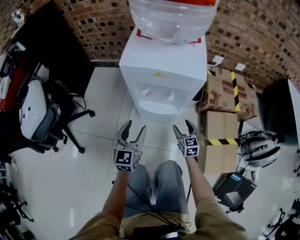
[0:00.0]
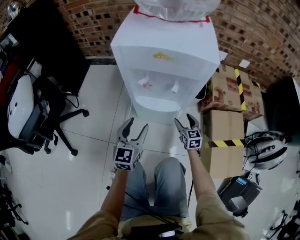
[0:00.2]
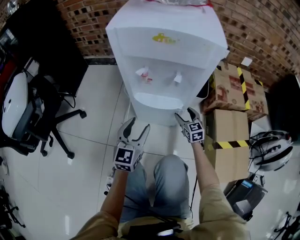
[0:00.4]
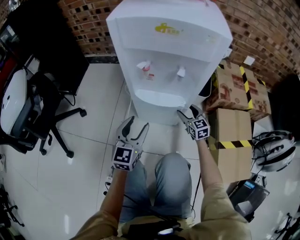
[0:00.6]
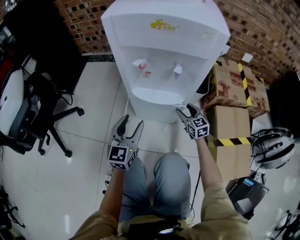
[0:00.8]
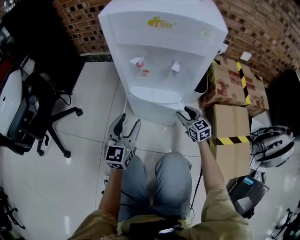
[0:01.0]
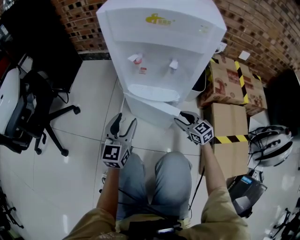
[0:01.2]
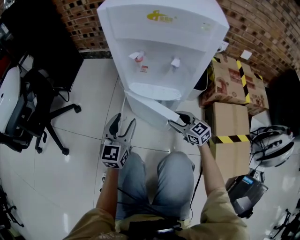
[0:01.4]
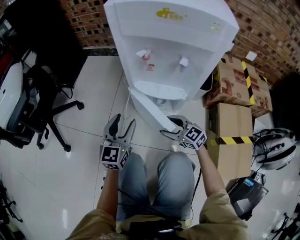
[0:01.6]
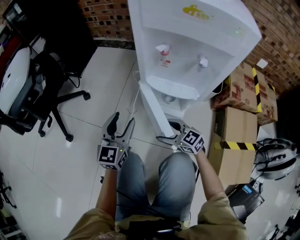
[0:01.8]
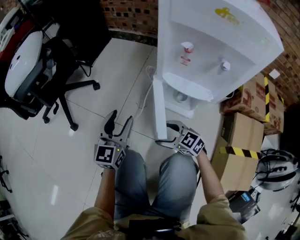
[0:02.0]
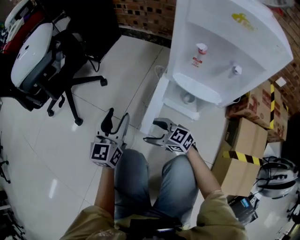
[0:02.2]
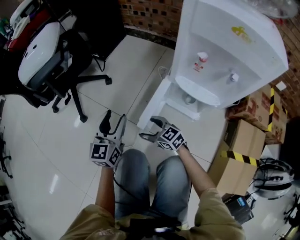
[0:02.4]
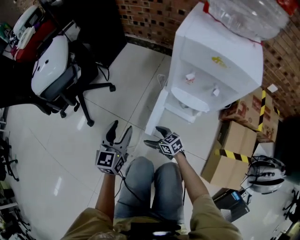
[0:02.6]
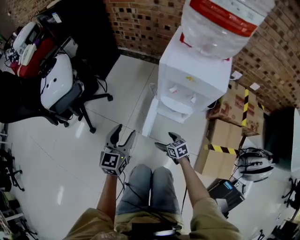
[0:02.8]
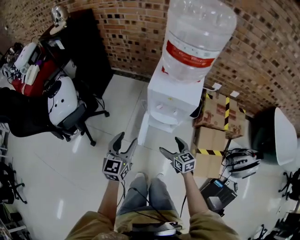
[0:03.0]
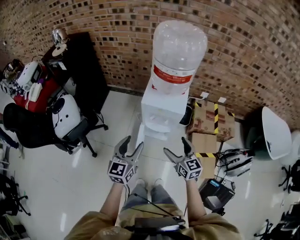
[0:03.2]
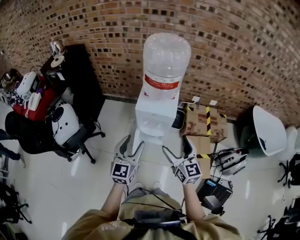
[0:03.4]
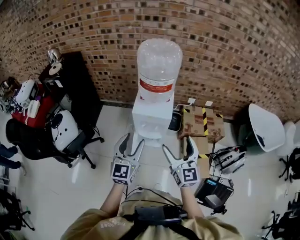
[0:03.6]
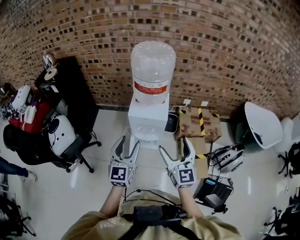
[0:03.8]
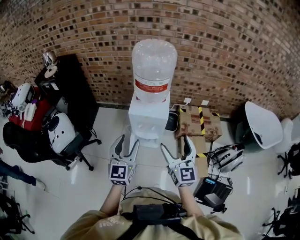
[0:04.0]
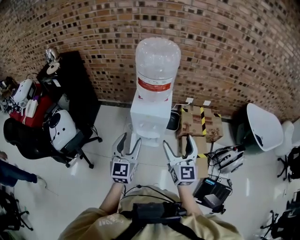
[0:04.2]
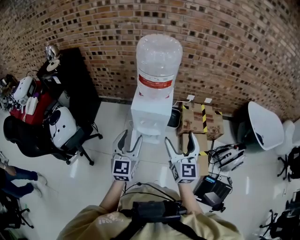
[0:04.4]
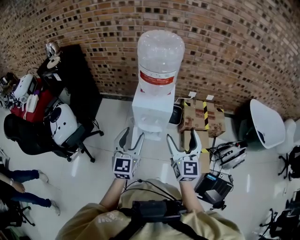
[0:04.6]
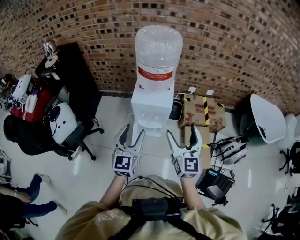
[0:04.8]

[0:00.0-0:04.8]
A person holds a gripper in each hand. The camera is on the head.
0:00.0 to 0:01.6: Both grippers travel together downward, roughly 15 cm. The right gripper swivels approximately 50 degrees.
0:01.6 to 0:03.2: The grippers both shift upward by approximately 60 cm. The right gripper swivels some 40 degrees, and opens up.
0:03.2 to 0:04.8: The right gripper moves upward, about 20 cm, and changes its angle by approximately 30 degrees. Meanwhile the left gripper is displaced upward and to the right by approximately 10 cm.

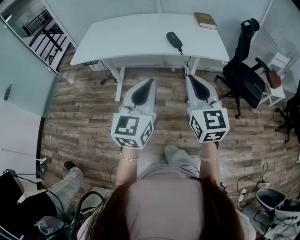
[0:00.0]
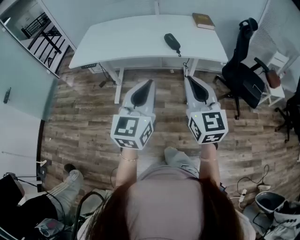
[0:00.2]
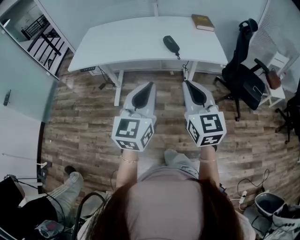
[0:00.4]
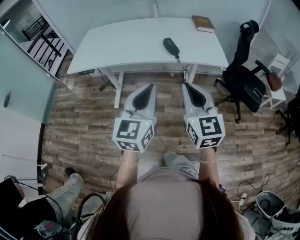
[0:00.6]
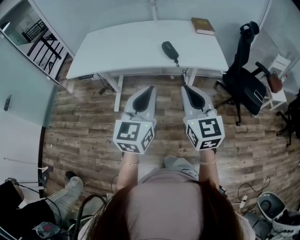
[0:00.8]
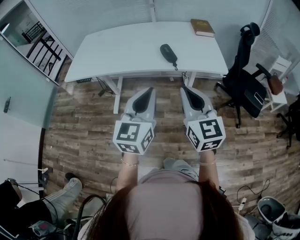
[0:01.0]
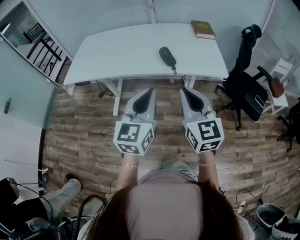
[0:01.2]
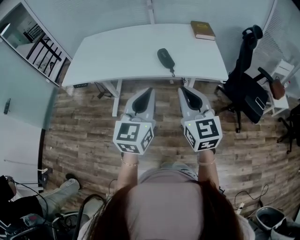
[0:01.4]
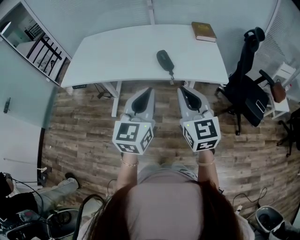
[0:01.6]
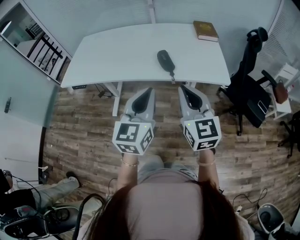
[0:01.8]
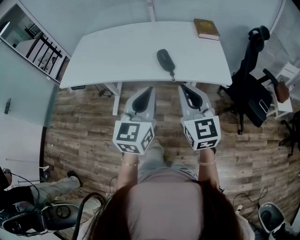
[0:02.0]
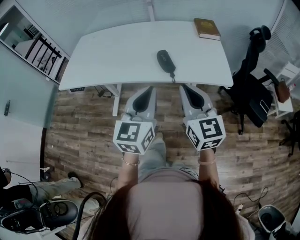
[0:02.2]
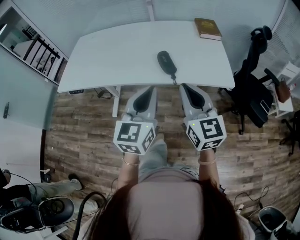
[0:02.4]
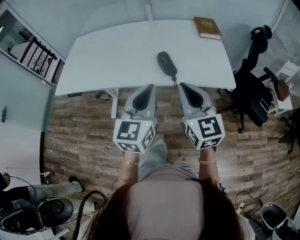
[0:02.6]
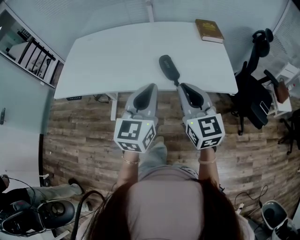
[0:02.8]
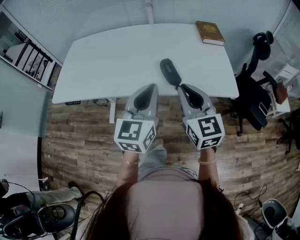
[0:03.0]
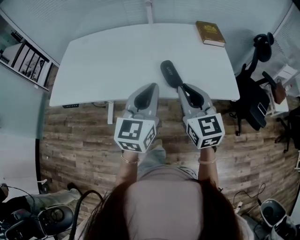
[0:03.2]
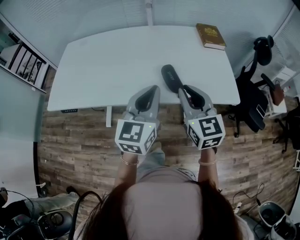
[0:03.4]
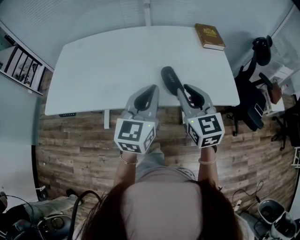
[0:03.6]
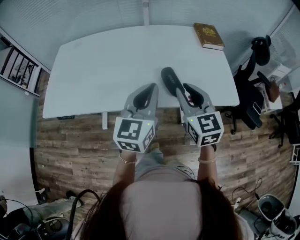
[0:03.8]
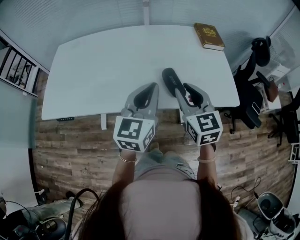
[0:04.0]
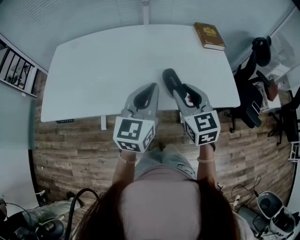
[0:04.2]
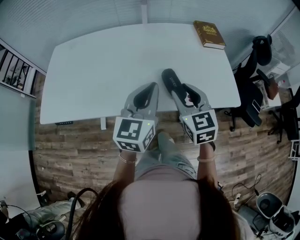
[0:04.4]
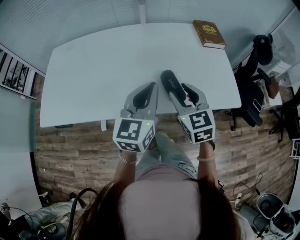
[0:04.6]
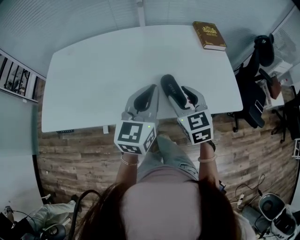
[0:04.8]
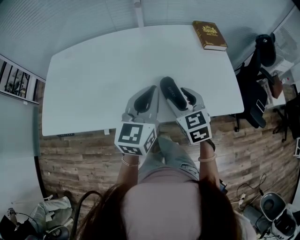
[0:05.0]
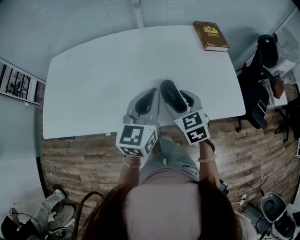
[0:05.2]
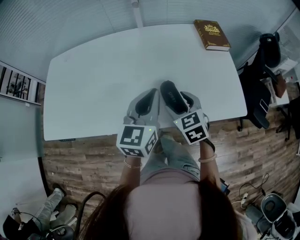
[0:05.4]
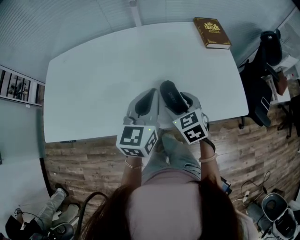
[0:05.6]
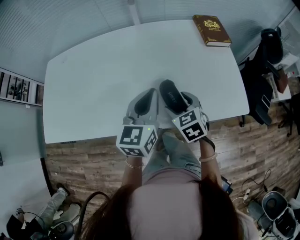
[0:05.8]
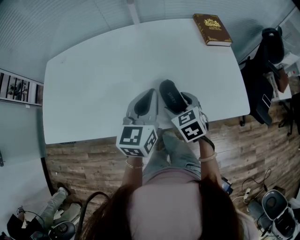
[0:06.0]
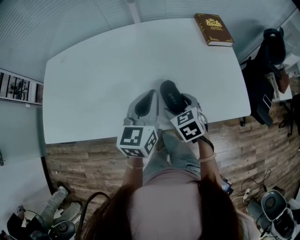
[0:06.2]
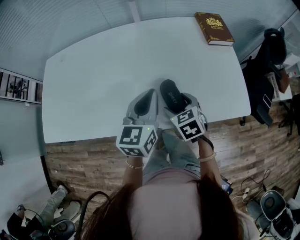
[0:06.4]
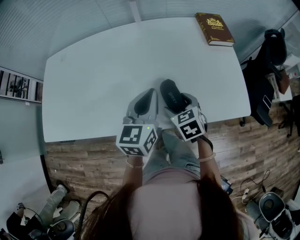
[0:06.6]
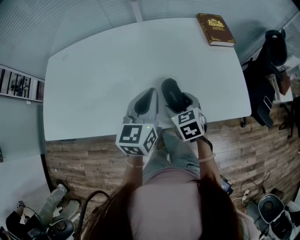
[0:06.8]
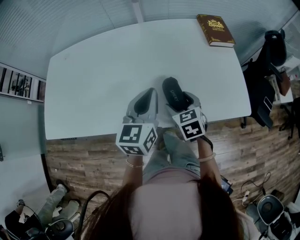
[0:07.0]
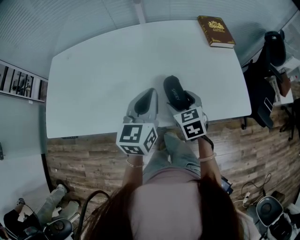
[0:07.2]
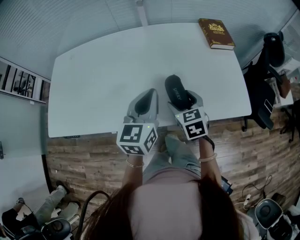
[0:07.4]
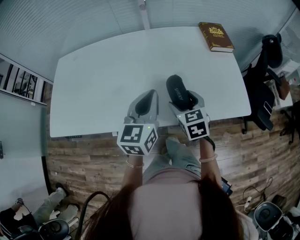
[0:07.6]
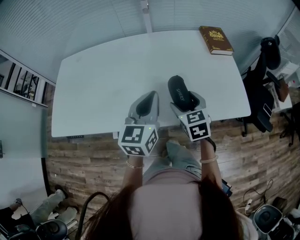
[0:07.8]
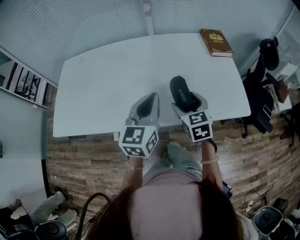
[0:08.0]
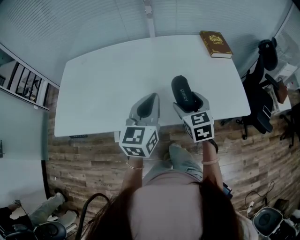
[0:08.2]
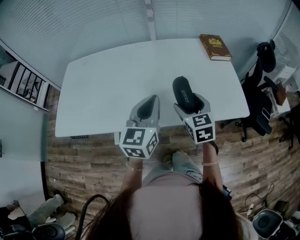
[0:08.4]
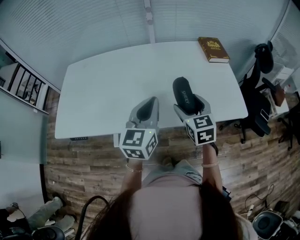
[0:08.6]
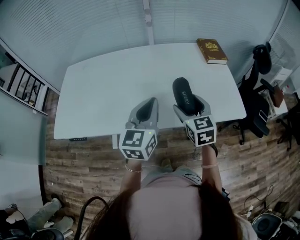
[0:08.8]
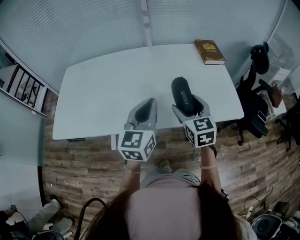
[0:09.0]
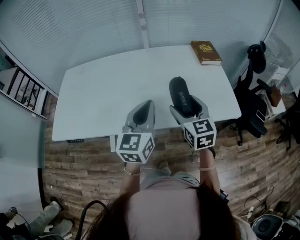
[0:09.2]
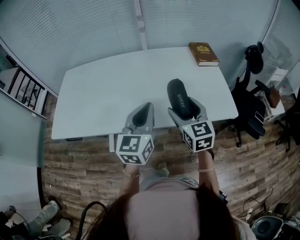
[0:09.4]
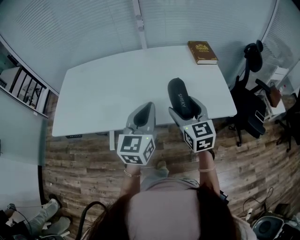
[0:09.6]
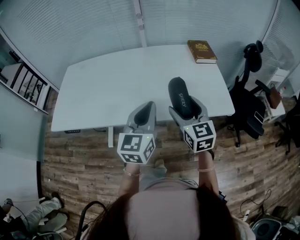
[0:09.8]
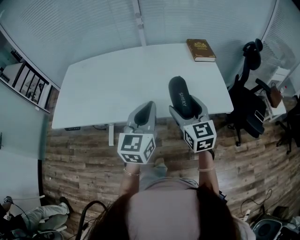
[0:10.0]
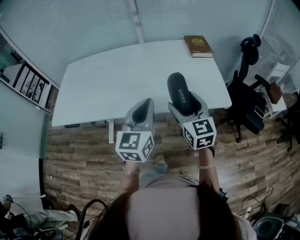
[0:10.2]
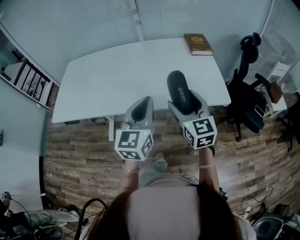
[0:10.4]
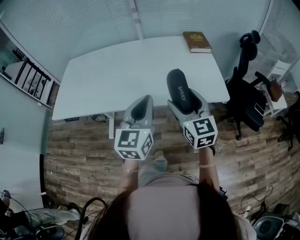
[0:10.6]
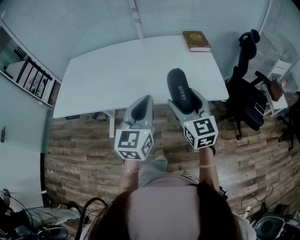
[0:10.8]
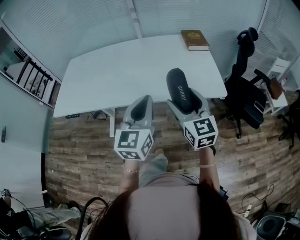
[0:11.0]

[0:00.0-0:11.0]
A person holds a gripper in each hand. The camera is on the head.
0:00.0 to 0:01.6: The left gripper shifts roughly 20 cm forward and to the right. The right gripper shifts approximately 15 cm forward.
0:01.6 to 0:03.2: The two grippers go some 15 cm forward.
0:03.2 to 0:04.8: The right gripper shifts some 15 cm forward and downward, and opens up. The left gripper moves forward, about 15 cm.
0:04.8 to 0:06.2: The left gripper shifts approximately 10 cm forward and downward. The right gripper is displaced downward by approximately 10 cm, swivels some 20 degrees, and opens its fingers.
0:06.2 to 0:07.8: The right gripper is displaced upward by some 5 cm. Meanwhile the left gripper moves approximately 5 cm.
0:07.8 to 0:09.4: The left gripper moves backward, roughly 10 cm, while the right gripper heads upward and backward, covering about 10 cm.
0:09.4 to 0:11.0: Both grippers travel together backward and to the right, approximately 15 cm.

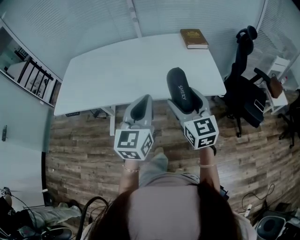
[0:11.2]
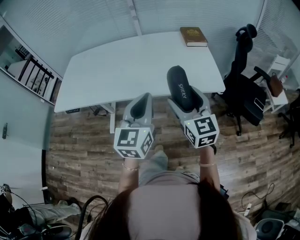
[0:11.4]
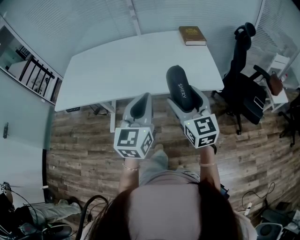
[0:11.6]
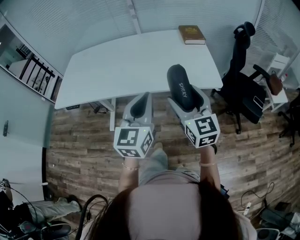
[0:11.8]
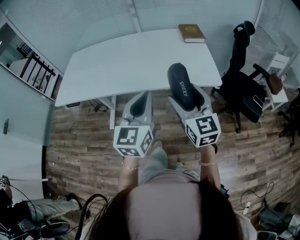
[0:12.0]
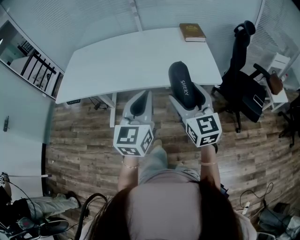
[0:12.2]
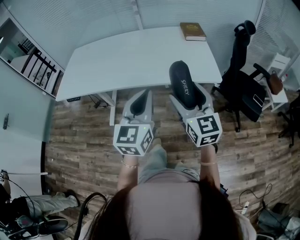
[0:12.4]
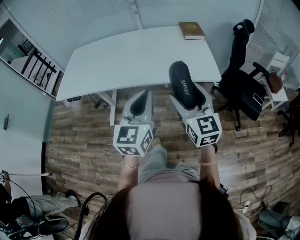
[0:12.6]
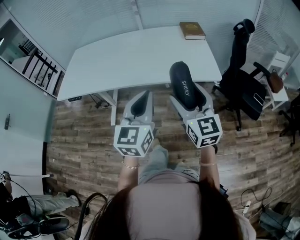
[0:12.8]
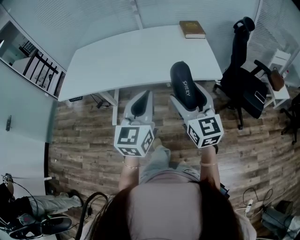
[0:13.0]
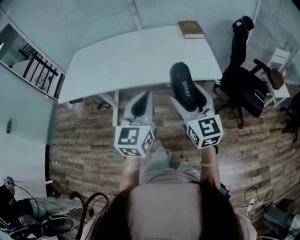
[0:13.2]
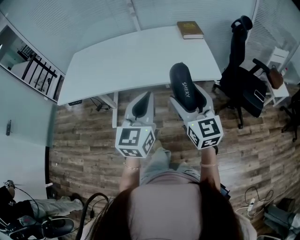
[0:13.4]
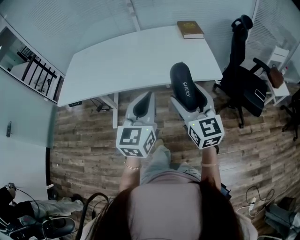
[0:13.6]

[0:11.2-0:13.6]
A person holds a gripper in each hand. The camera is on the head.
0:11.2 to 0:12.4: The two grippers go about 10 cm backward.
0:12.4 to 0:13.6: The grippers stay close to where they were, moving slightly.

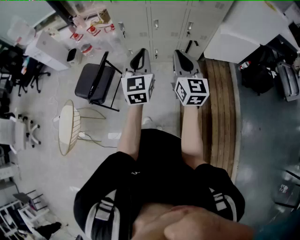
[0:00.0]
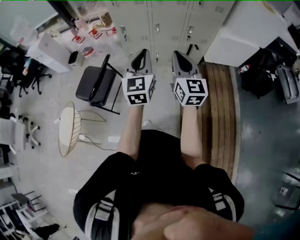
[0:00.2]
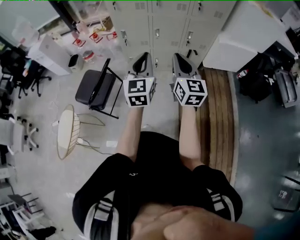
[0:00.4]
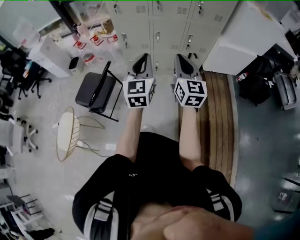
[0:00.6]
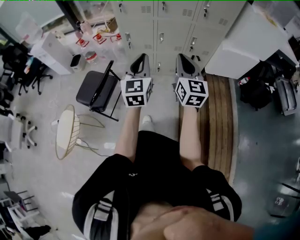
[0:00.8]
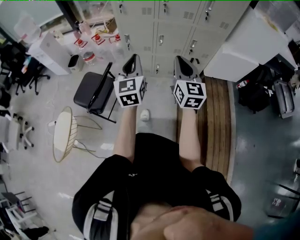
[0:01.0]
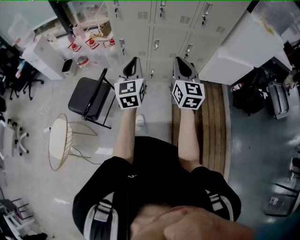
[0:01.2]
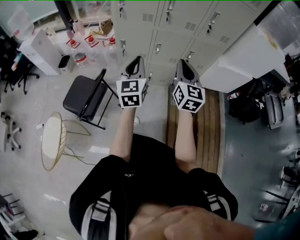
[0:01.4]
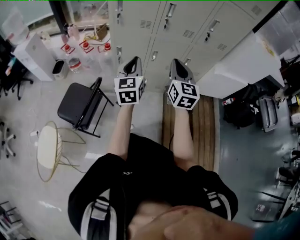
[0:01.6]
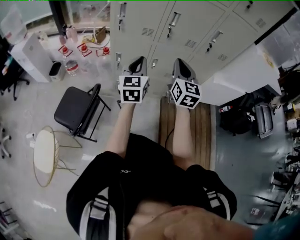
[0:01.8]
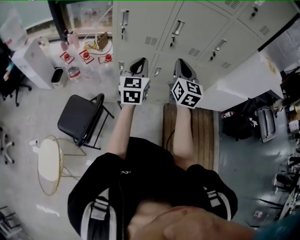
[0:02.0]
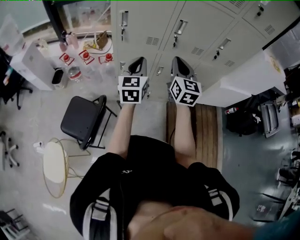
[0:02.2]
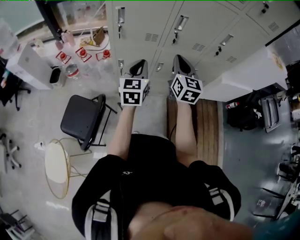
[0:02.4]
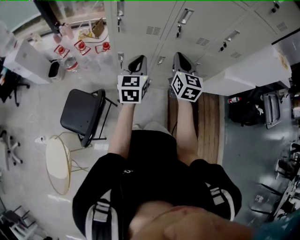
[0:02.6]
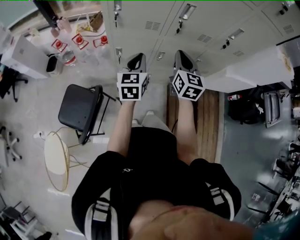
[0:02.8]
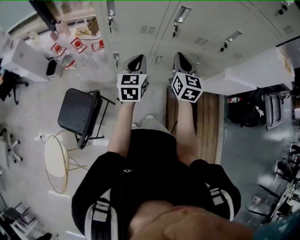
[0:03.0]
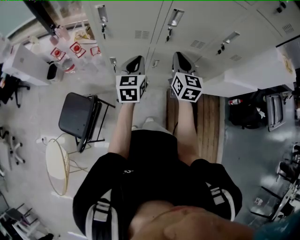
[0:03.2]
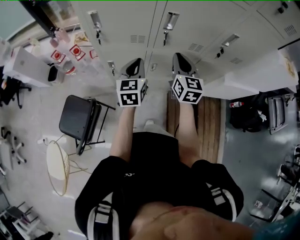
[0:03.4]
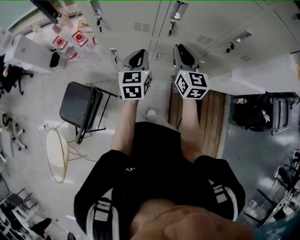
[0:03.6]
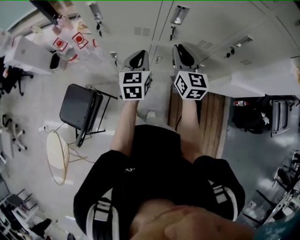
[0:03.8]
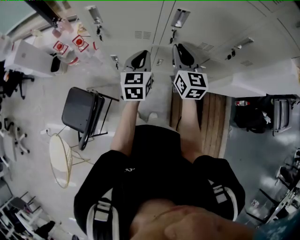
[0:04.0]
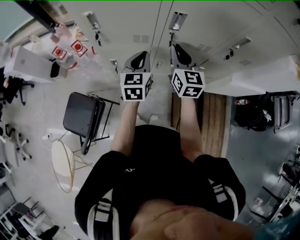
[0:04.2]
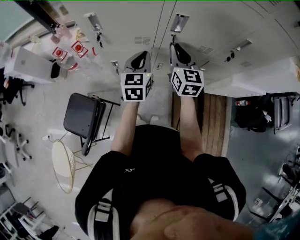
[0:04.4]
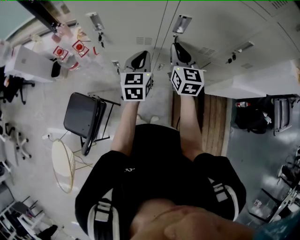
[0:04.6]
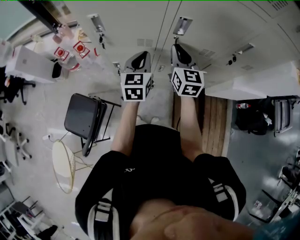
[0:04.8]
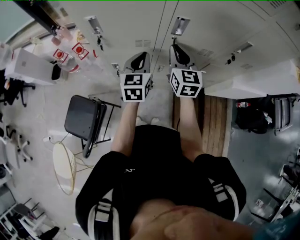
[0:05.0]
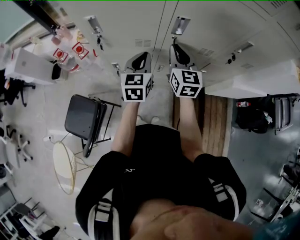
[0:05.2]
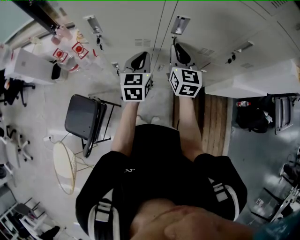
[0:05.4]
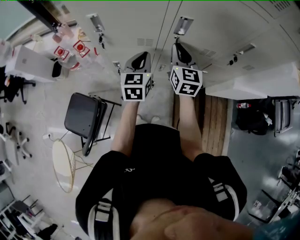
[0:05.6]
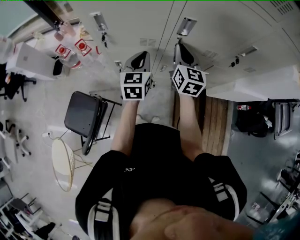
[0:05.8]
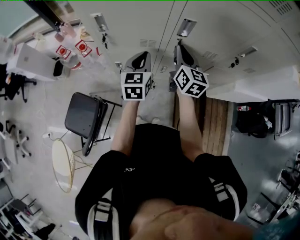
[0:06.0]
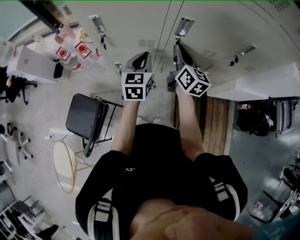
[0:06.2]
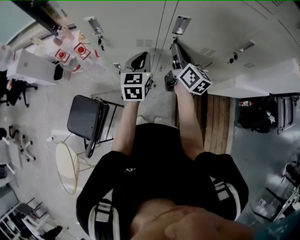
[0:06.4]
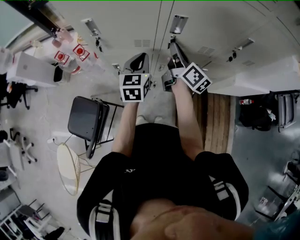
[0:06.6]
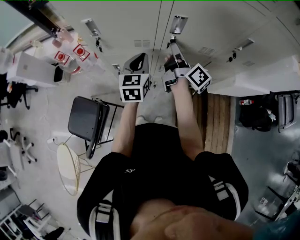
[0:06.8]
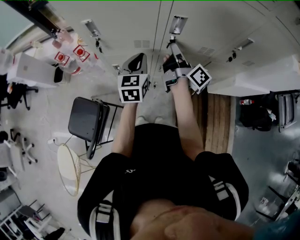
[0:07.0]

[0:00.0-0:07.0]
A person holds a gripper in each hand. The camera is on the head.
0:00.0 to 0:01.4: The left gripper goes approximately 15 cm forward and to the left. Meanwhile the right gripper moves forward, about 10 cm.
0:01.4 to 0:02.8: The two grippers go about 25 cm forward.
0:02.8 to 0:04.2: The left gripper goes approximately 15 cm forward and to the right. The right gripper moves forward, approximately 10 cm.
0:04.2 to 0:05.6: There are only small adjustments of the grippers.
0:05.6 to 0:07.0: The right gripper rolls clockwise, seen from behind, by roughly 70 degrees.
